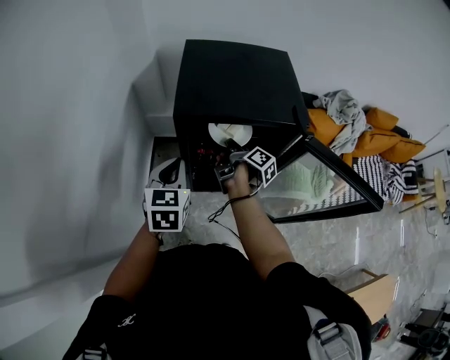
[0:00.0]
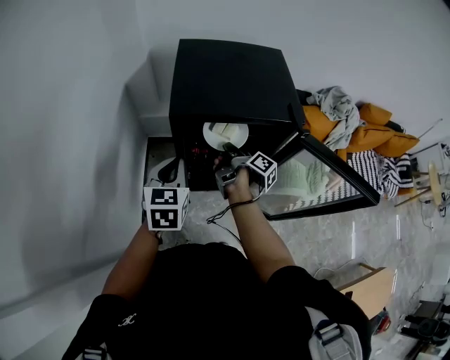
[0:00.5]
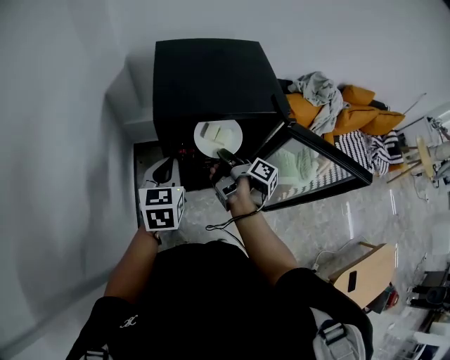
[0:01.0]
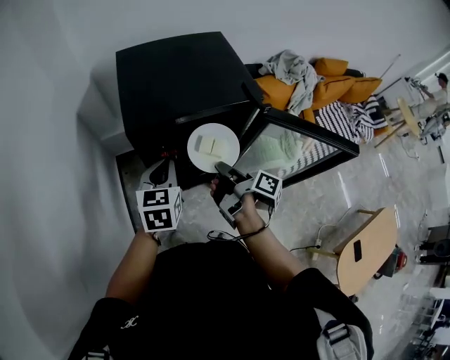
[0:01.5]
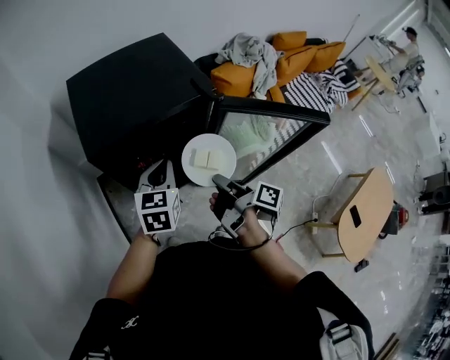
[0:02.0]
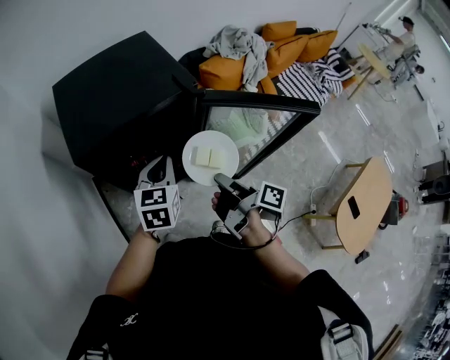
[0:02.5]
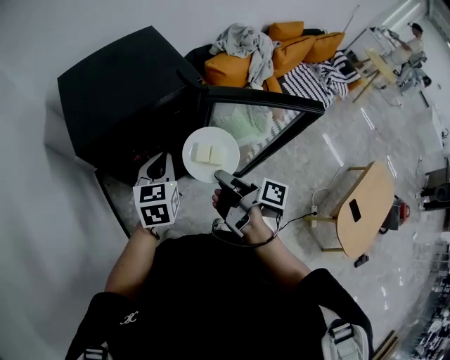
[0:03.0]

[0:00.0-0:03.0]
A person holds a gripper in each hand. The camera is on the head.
0:00.0 to 0:01.5: The left gripper moves to the right, roughly 5 cm; the right gripper goes about 15 cm backward and upward.
0:01.5 to 0:03.0: The right gripper shifts some 15 cm to the right and backward. Meanwhile the left gripper shifts roughly 15 cm to the right.

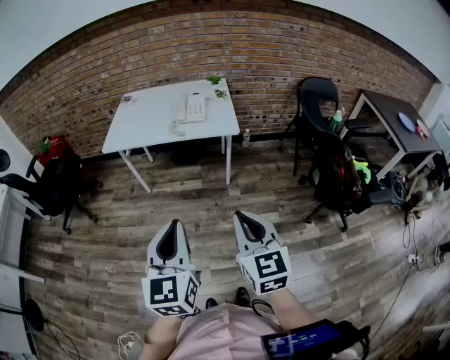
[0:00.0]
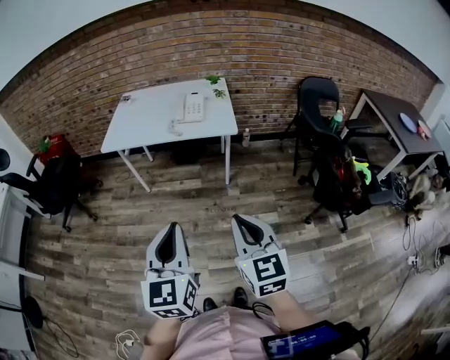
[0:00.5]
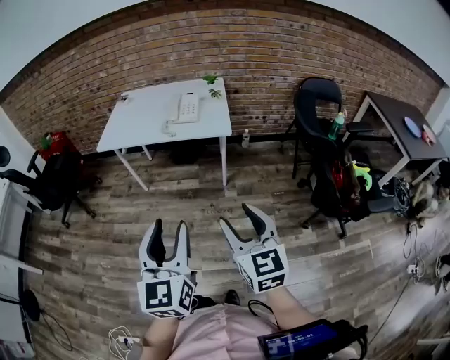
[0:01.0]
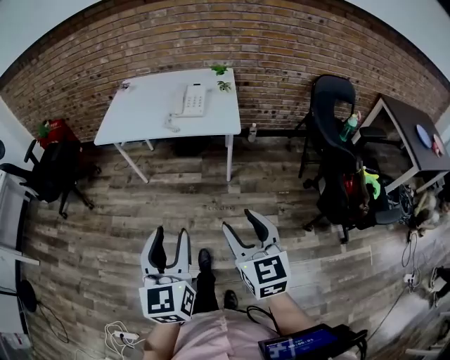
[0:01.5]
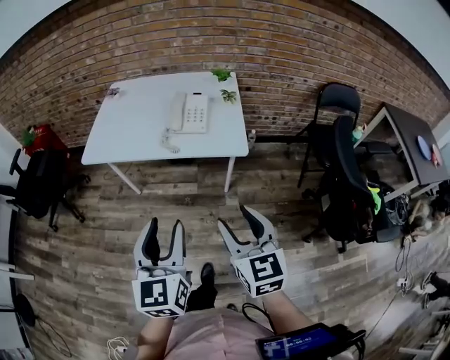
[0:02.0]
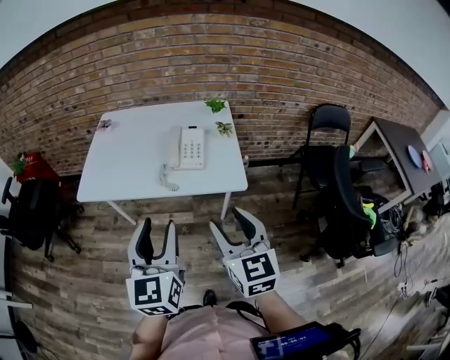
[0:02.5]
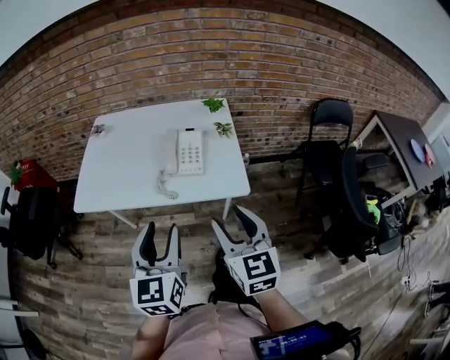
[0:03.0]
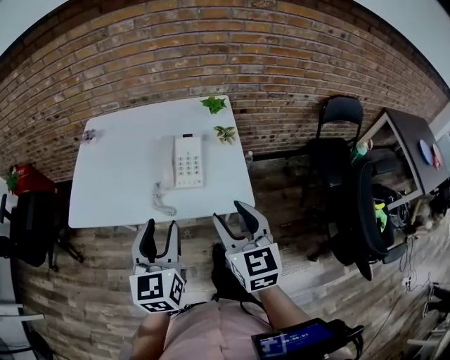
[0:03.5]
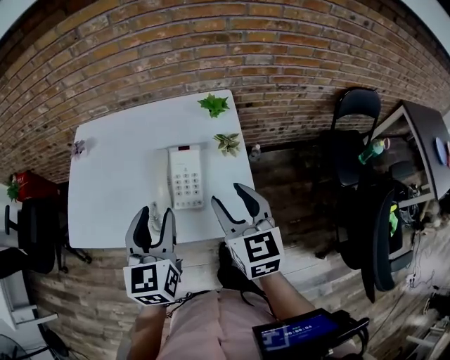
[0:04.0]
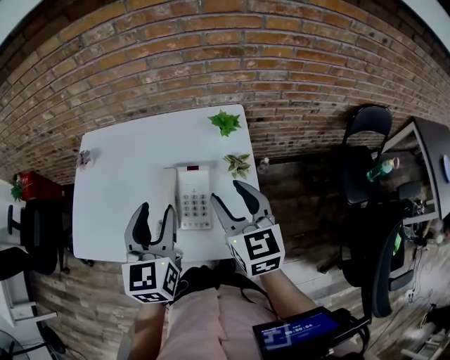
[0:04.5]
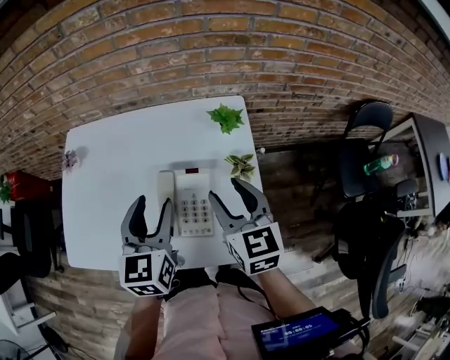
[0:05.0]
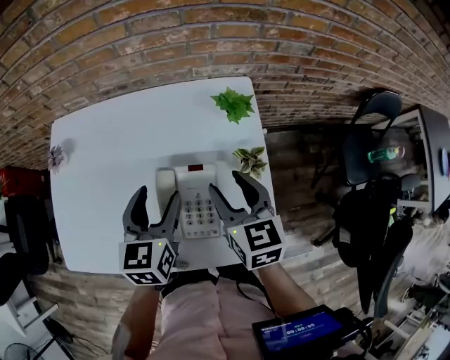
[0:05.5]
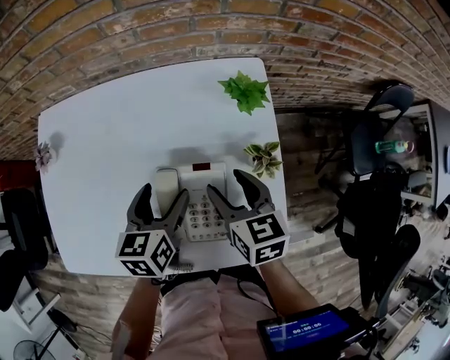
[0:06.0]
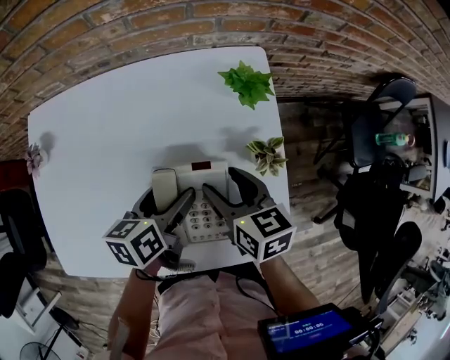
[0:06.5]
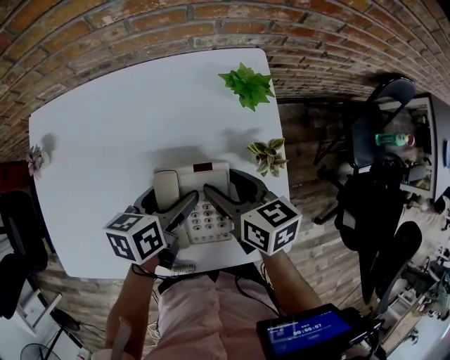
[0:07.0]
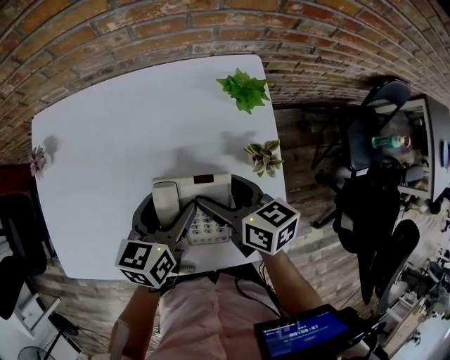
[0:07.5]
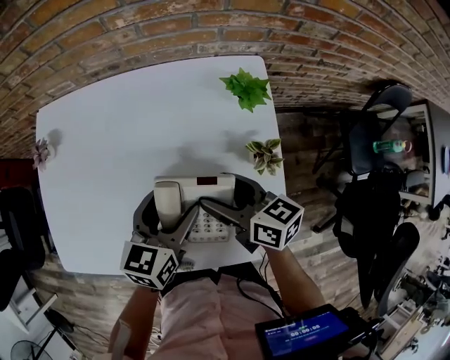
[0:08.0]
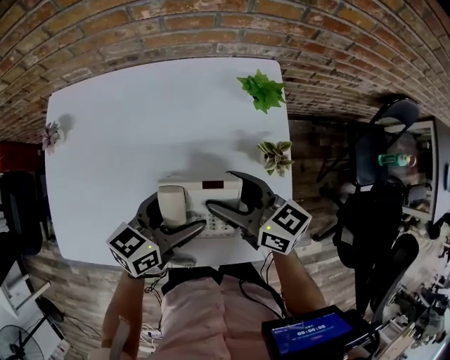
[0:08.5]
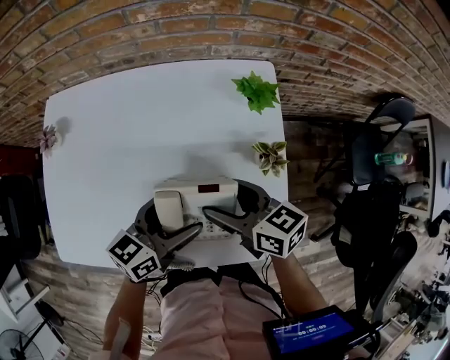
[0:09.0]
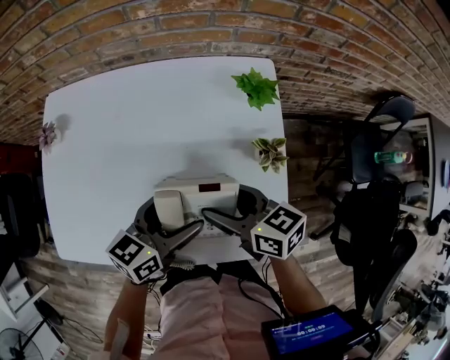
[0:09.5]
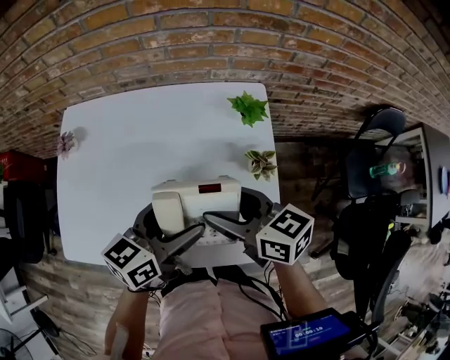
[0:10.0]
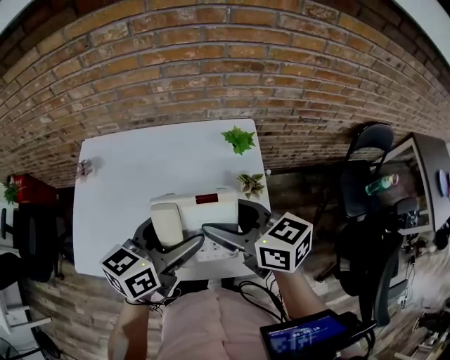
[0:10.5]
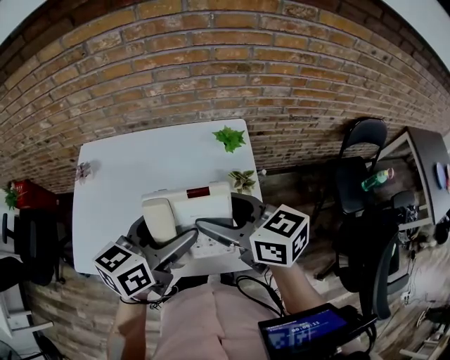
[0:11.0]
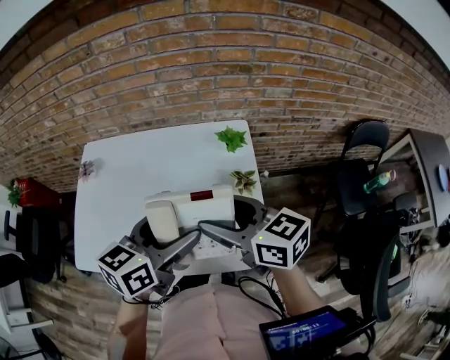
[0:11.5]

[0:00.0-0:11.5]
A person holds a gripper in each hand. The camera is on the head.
0:00.0 to 0:02.0: The grippers both shift forward by some 25 cm. The right gripper opens. Meanwhile the left gripper opens up.
0:02.0 to 0:04.0: Both grippers move forward, about 40 cm.
0:04.0 to 0:06.0: The two grippers go approximately 25 cm forward and downward. The left gripper rotates about 30 degrees, and opens its fingers. Meanwhile the right gripper turns by some 20 degrees.
0:06.0 to 0:07.5: The right gripper swivels roughly 20 degrees.
0:07.5 to 0:09.5: The right gripper shifts by about 5 cm. Meanwhile the left gripper is displaced backward by roughly 5 cm.
0:09.5 to 0:11.5: Both grippers move upward, about 20 cm.

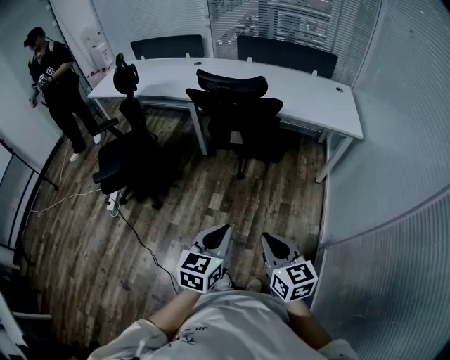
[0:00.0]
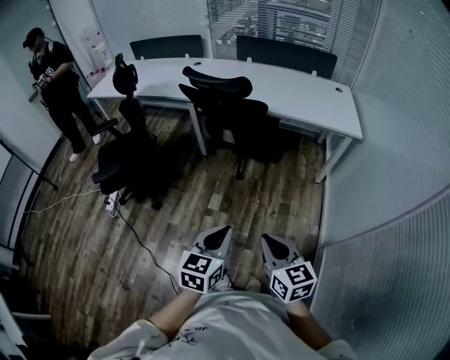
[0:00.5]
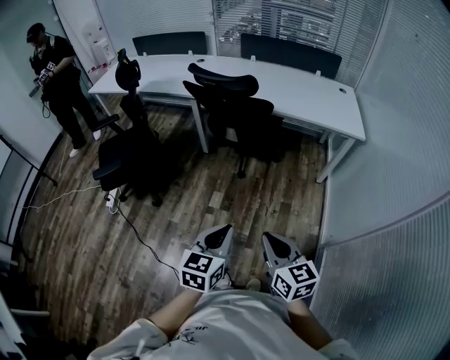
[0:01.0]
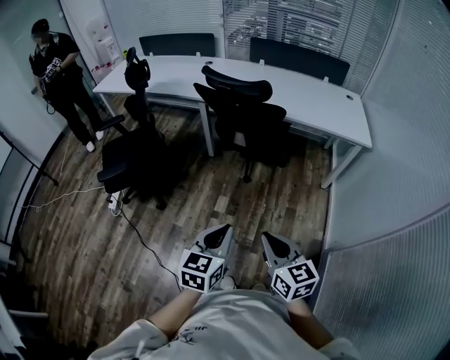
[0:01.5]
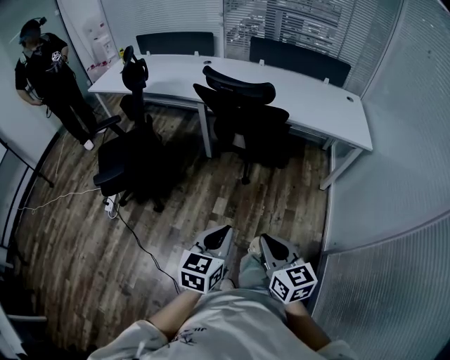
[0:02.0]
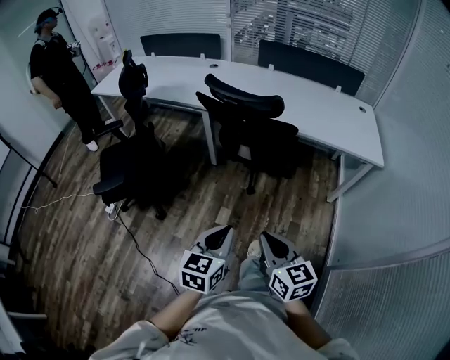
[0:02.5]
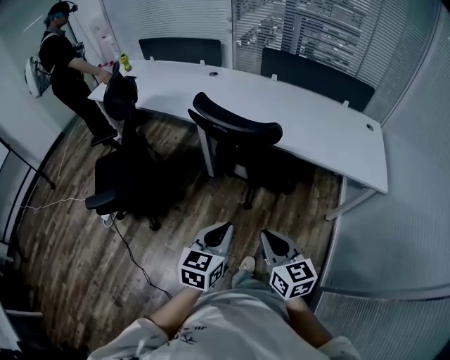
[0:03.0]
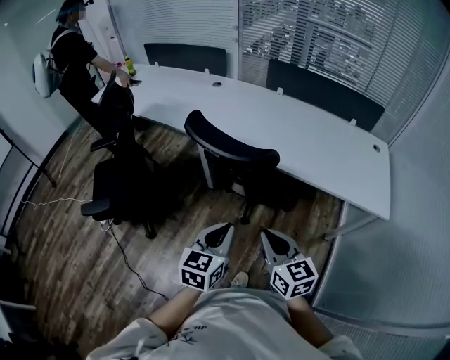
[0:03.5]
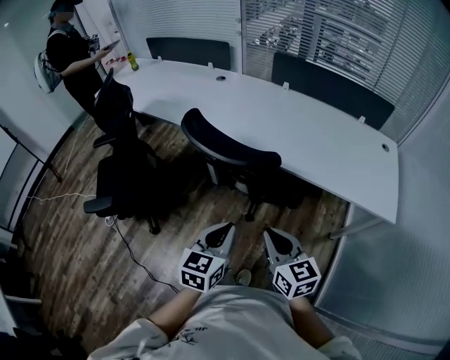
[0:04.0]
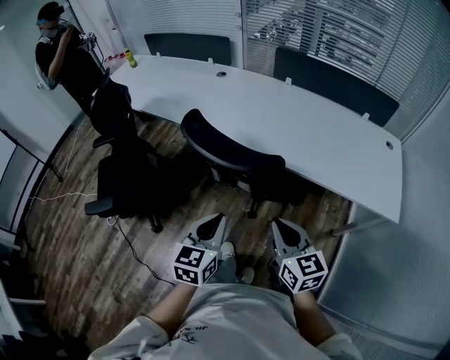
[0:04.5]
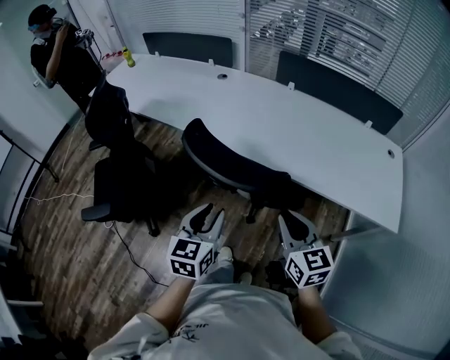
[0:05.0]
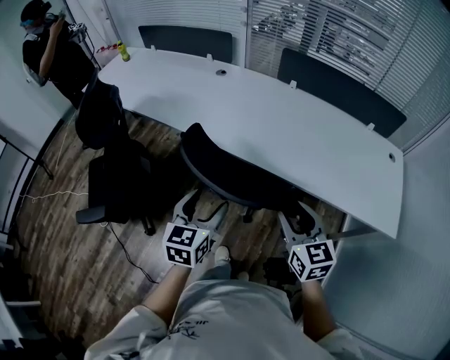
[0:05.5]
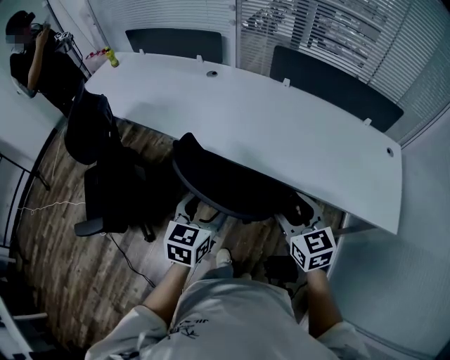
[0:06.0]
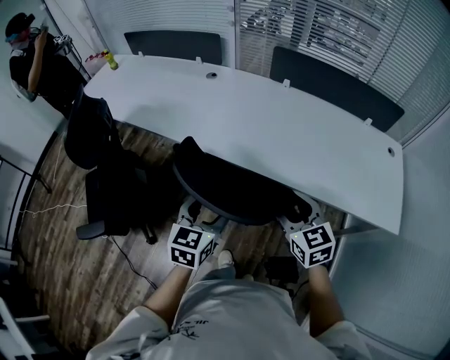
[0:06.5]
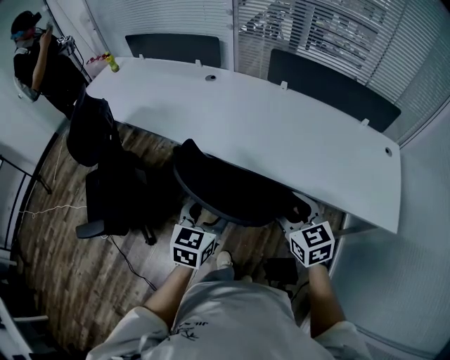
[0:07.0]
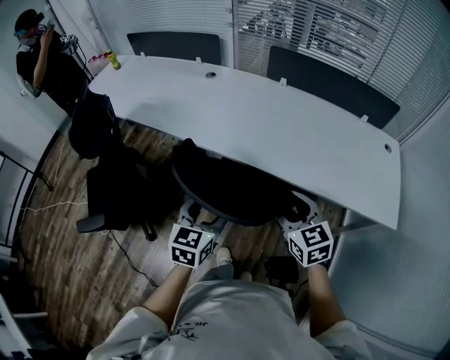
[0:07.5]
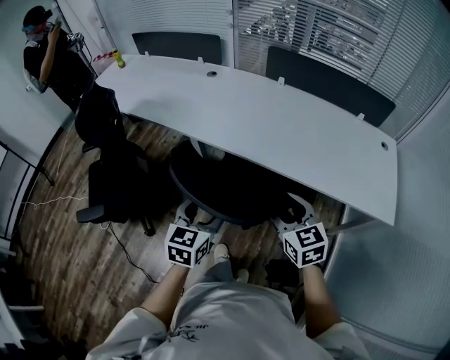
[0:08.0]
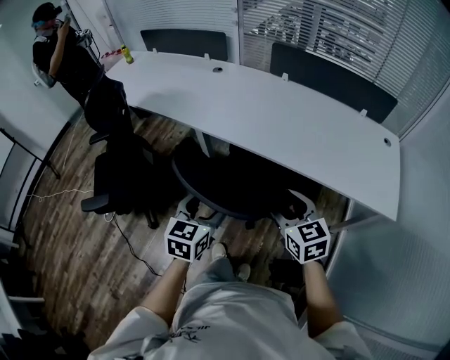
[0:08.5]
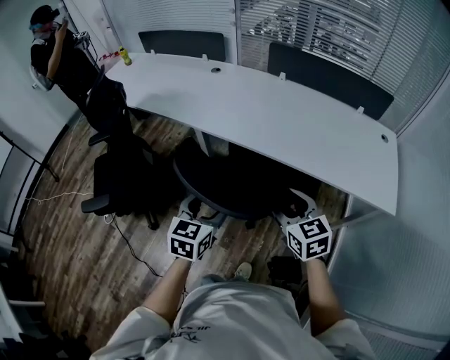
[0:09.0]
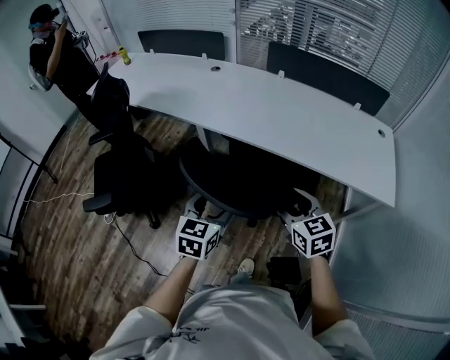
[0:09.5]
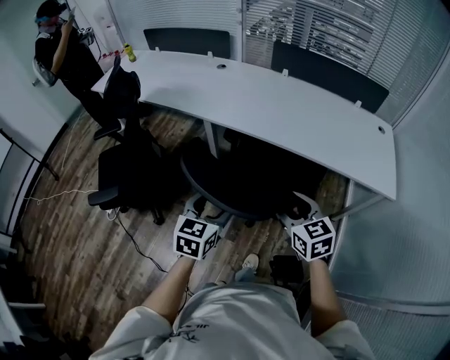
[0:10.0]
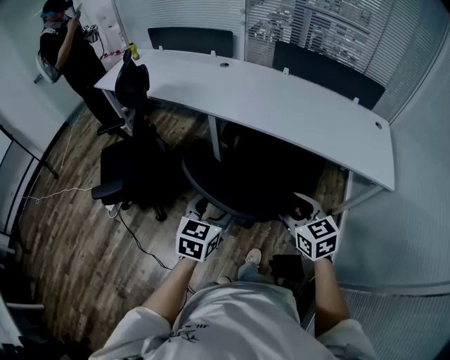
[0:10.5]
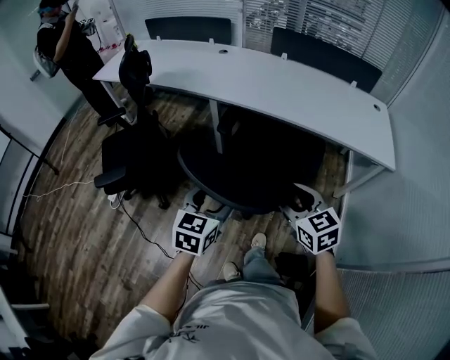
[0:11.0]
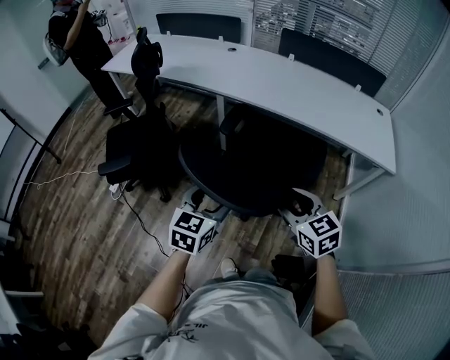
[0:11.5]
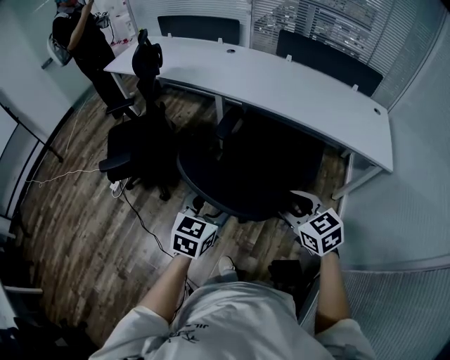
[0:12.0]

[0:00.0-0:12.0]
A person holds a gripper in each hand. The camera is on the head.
0:00.0 to 0:02.0: Both grippers travel together to the left and forward, approximately 10 cm.
0:02.0 to 0:04.0: The grippers both shift forward by about 35 cm.
0:04.0 to 0:06.0: Both grippers travel together forward, roughly 20 cm. The left gripper opens up; the right gripper opens up.
0:06.0 to 0:08.0: Both grippers travel together backward, about 5 cm.
0:08.0 to 0:10.0: Both grippers move backward, roughly 10 cm.
0:10.0 to 0:12.0: Both grippers move backward, roughly 20 cm.
